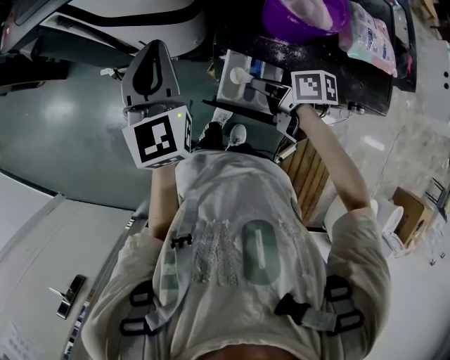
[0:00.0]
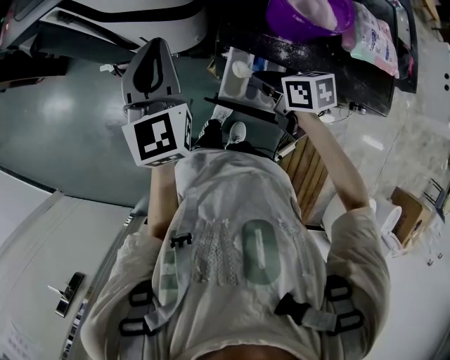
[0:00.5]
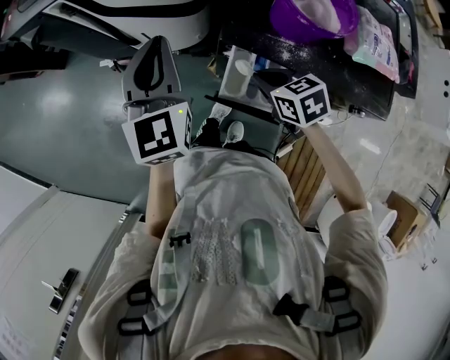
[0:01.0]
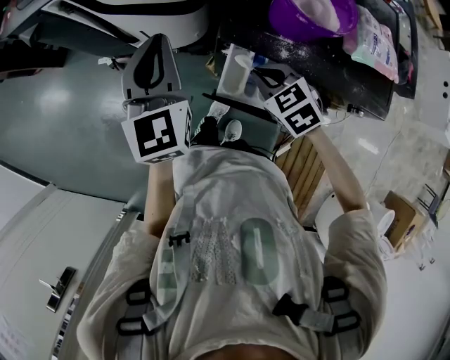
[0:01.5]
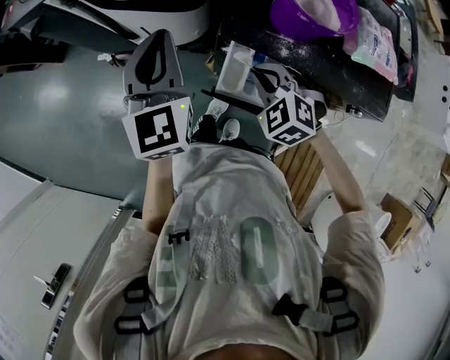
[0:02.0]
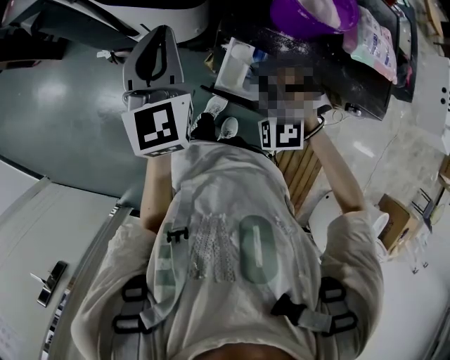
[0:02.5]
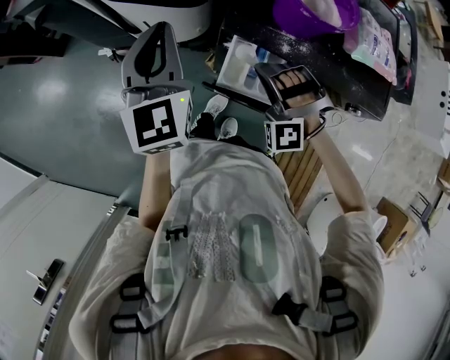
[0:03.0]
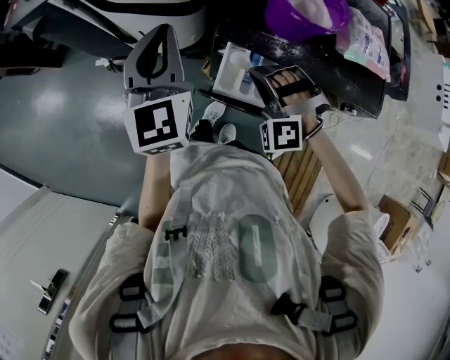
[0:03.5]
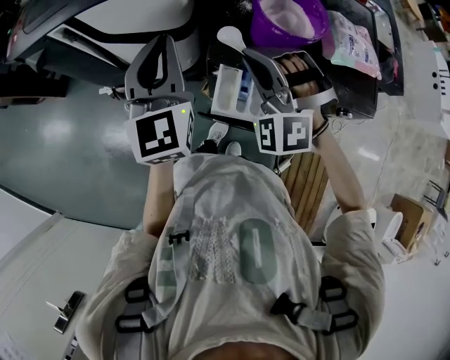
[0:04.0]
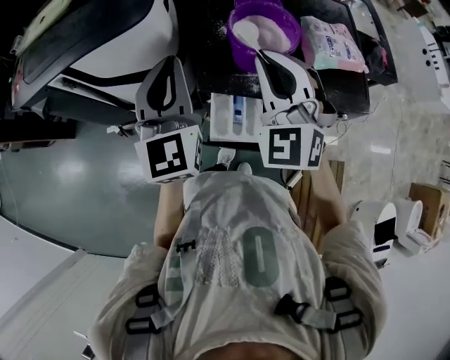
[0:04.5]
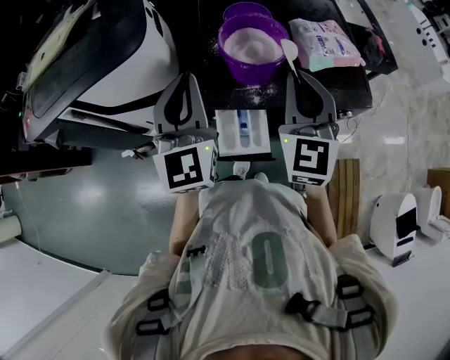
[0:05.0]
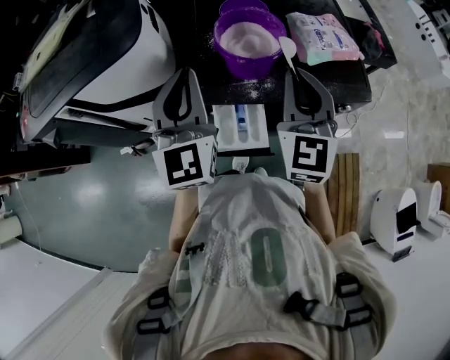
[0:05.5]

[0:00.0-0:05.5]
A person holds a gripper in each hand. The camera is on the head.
0:00.0 to 0:02.0: The right gripper rolls counterclockwise, seen from behind, by some 90 degrees.
0:02.0 to 0:03.5: The right gripper rolls counterclockwise, seen from behind, by about 40 degrees.
0:03.5 to 0:05.5: The right gripper heads upward, covering roughly 20 cm, and twists about 80 degrees clockwise, seen from behind. Meanwhile the left gripper moves approximately 15 cm, and swivels some 20 degrees.

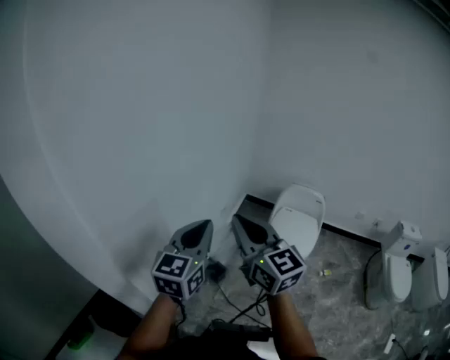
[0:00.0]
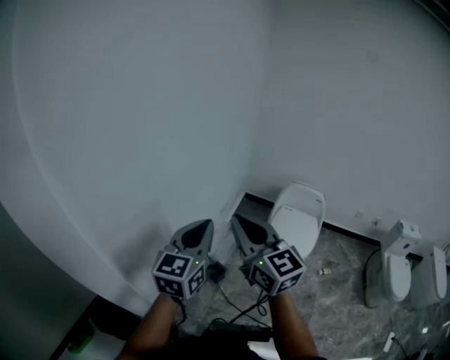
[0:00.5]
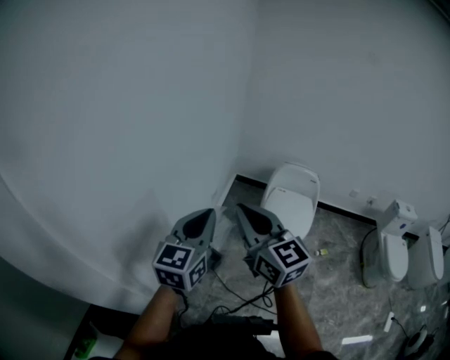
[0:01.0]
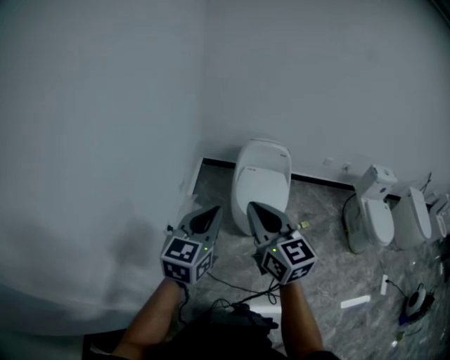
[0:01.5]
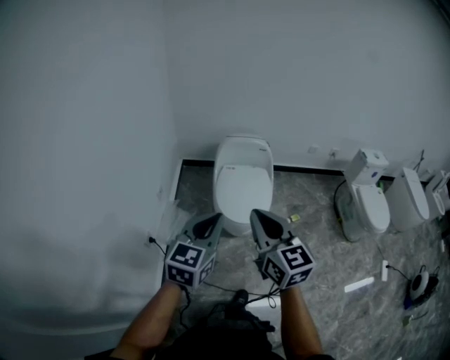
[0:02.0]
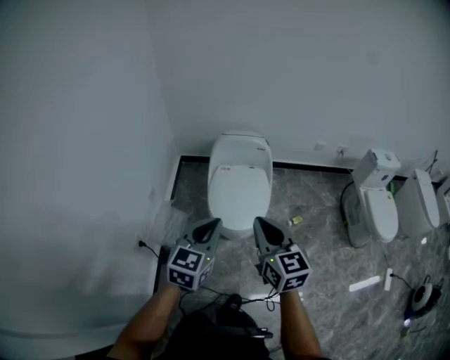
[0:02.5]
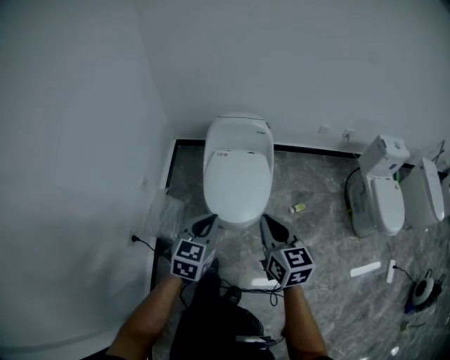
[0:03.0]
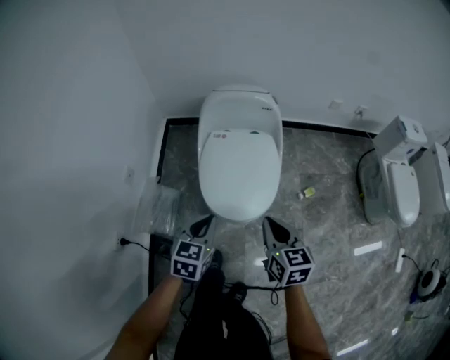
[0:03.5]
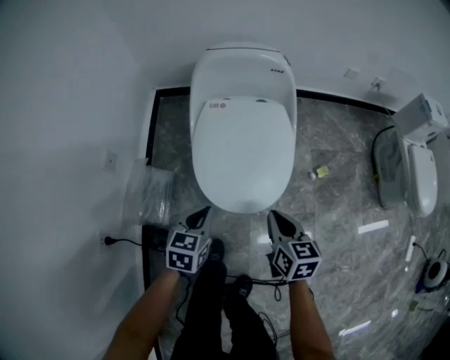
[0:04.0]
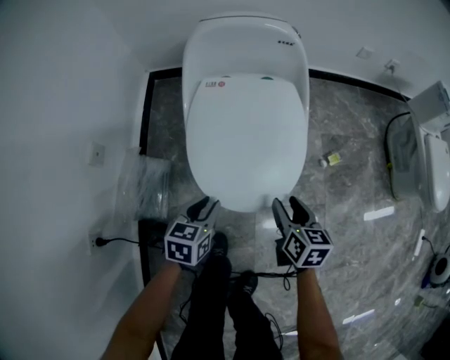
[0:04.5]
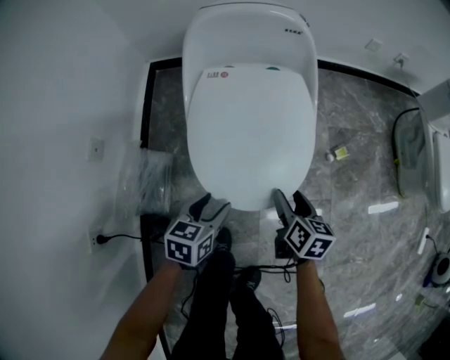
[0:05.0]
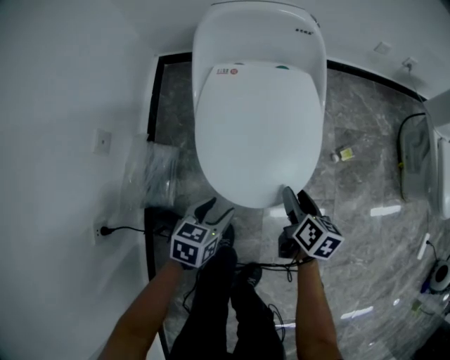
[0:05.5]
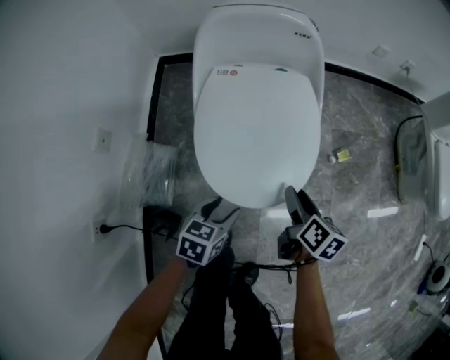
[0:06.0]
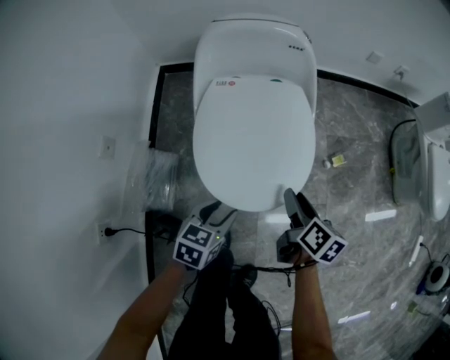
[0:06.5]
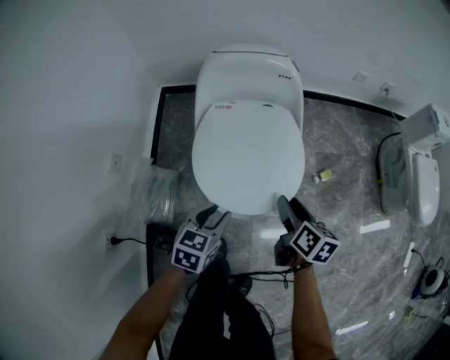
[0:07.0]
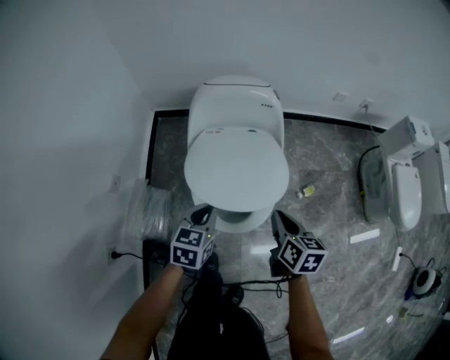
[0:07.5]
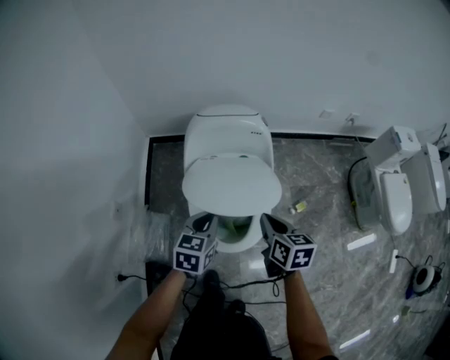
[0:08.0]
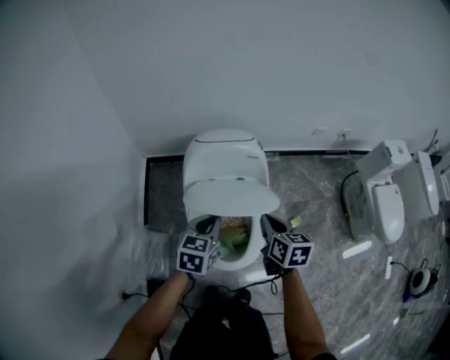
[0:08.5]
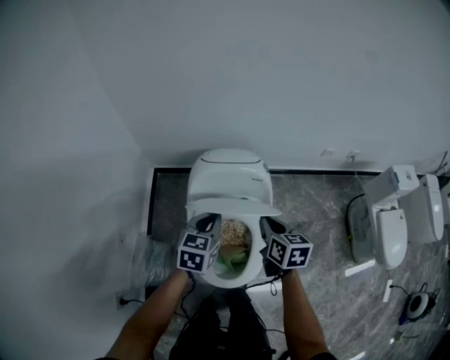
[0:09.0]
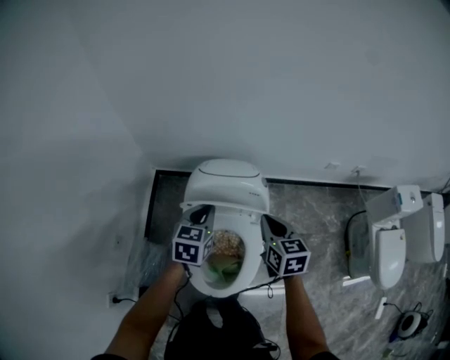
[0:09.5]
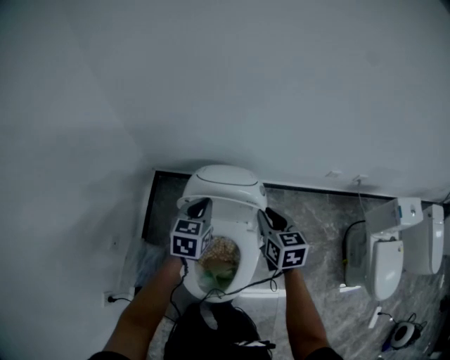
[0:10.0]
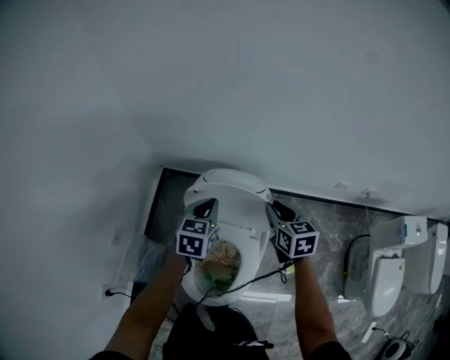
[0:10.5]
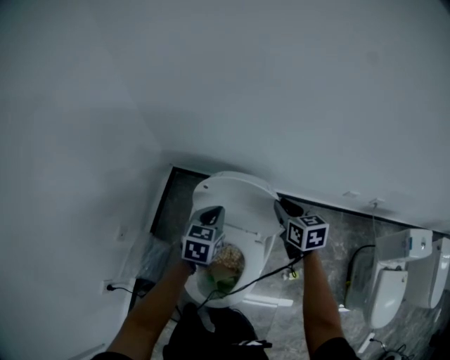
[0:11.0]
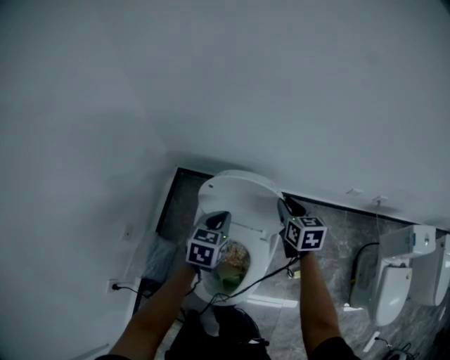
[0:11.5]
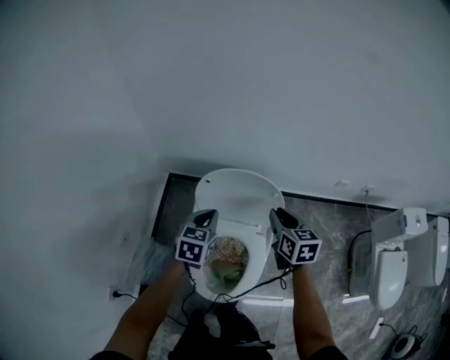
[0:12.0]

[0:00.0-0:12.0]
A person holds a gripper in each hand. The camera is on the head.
0:00.0 to 0:02.0: The right gripper moves about 25 cm, and changes its angle by approximately 40 degrees; the left gripper moves some 25 cm, and swivels about 30 degrees.
0:02.0 to 0:04.0: Both grippers travel together downward and forward, about 50 cm. The right gripper rotates about 40 degrees. Meanwhile the left gripper turns by some 30 degrees.
0:04.0 to 0:06.0: The left gripper moves downward, some 10 cm, and opens up. Meanwhile the right gripper heads downward and forward, covering some 10 cm, rotates about 30 degrees, and opens.
0:06.0 to 0:08.0: The right gripper is displaced upward by about 20 cm, swivels some 20 degrees, and closes its fingers; the left gripper shifts about 25 cm upward and forward, and closes.
0:08.0 to 0:10.0: The grippers both shift forward by about 25 cm.
0:10.0 to 0:12.0: The right gripper travels forward and back again, about 10 cm each way.

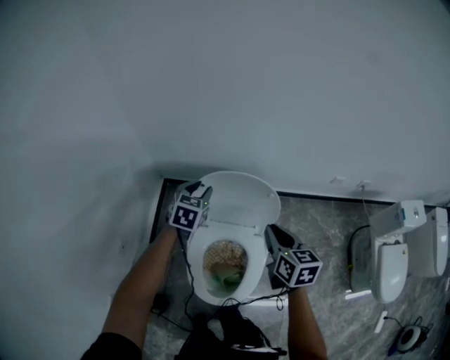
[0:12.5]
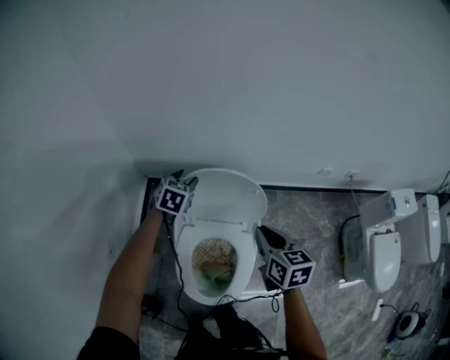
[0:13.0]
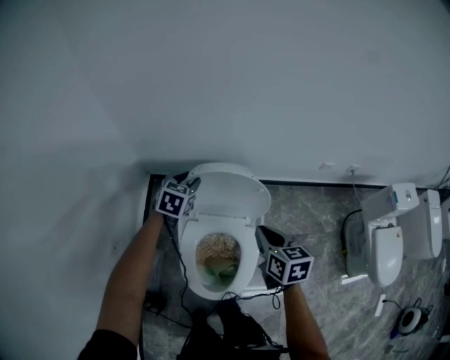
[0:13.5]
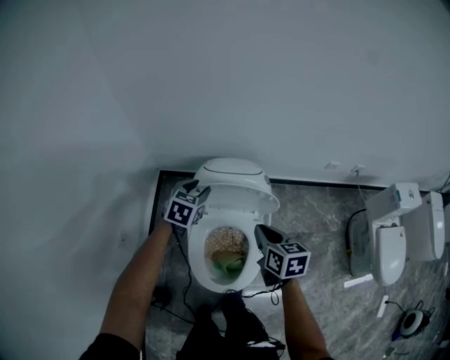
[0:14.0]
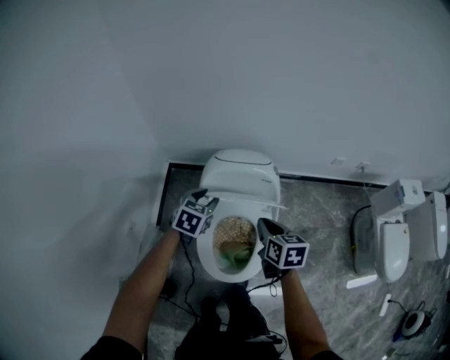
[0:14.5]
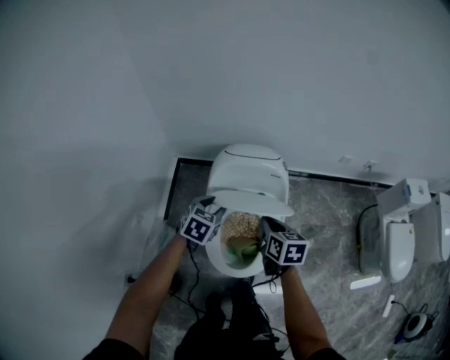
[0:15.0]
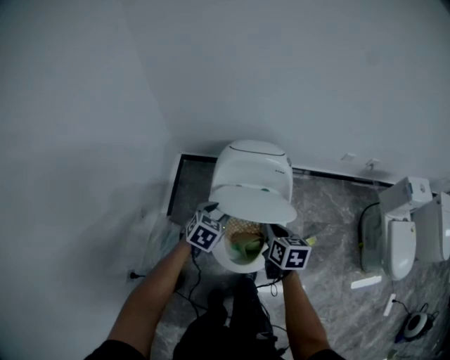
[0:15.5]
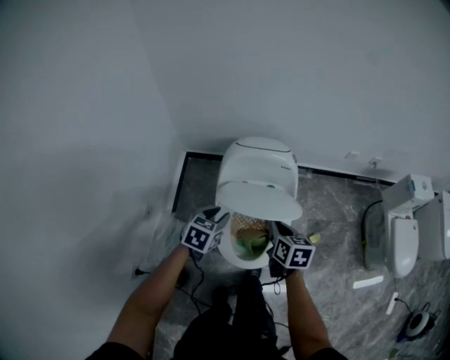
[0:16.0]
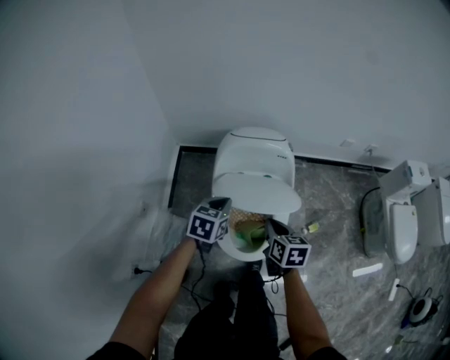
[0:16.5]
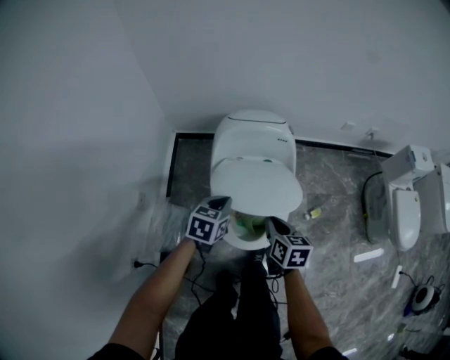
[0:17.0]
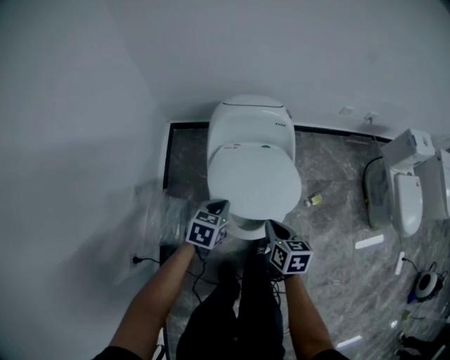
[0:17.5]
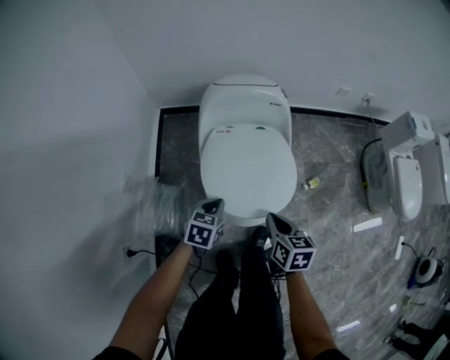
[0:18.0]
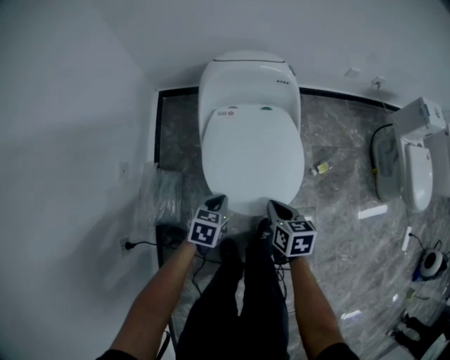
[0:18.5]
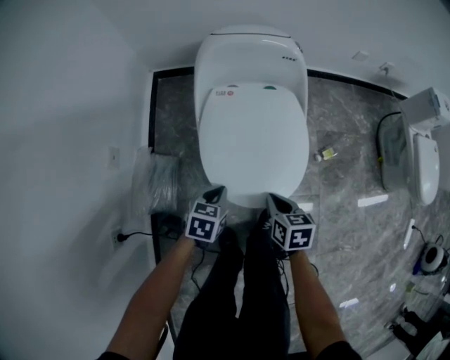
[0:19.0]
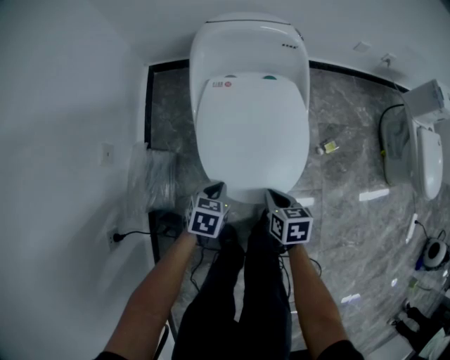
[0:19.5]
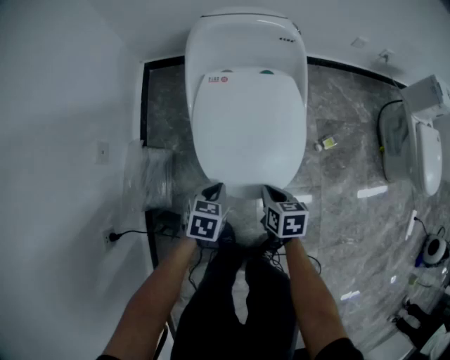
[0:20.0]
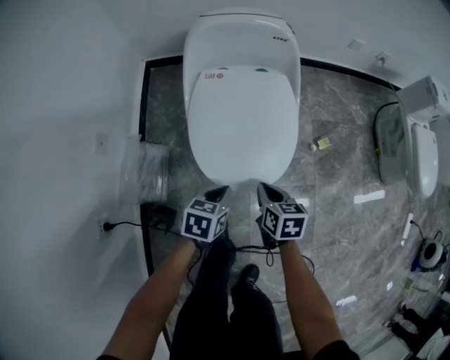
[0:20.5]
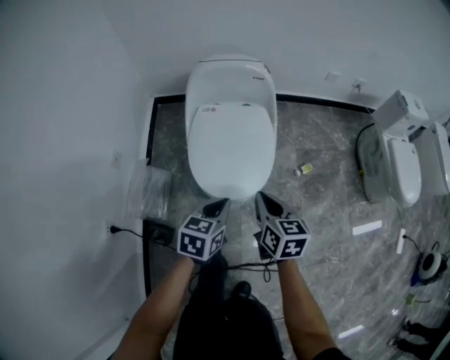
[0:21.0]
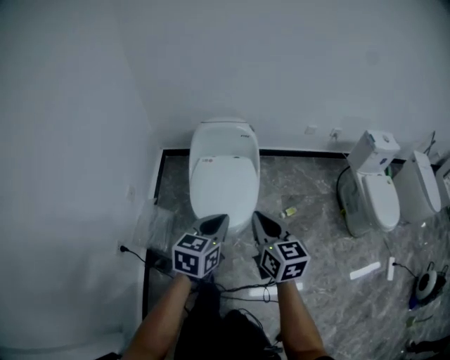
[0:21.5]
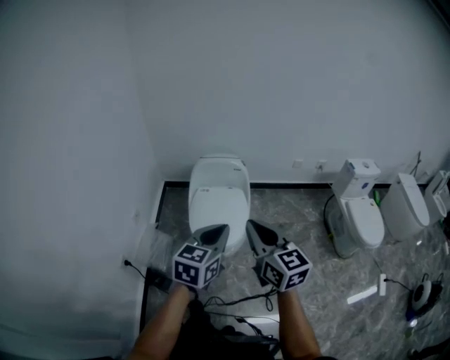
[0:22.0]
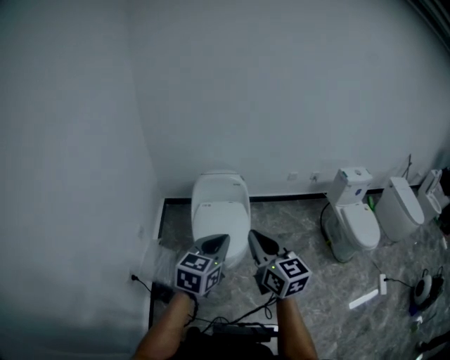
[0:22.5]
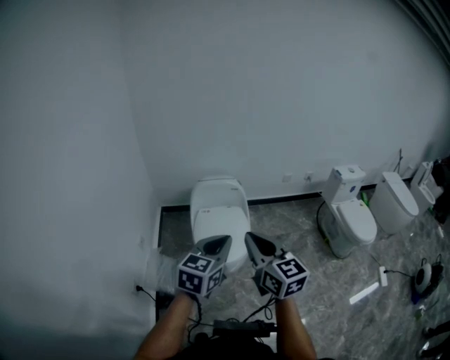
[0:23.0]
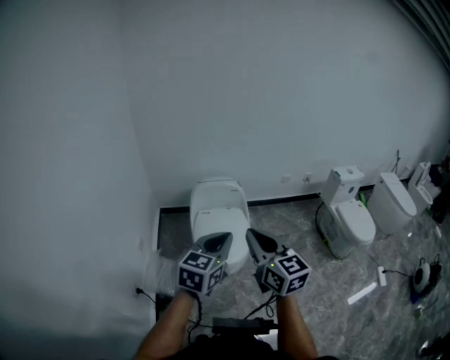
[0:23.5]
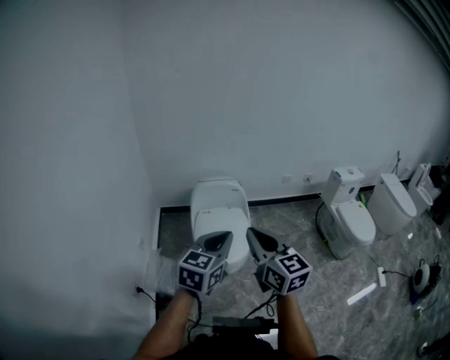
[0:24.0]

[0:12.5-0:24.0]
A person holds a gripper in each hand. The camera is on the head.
0:12.5 to 0:14.5: The left gripper travels backward by roughly 15 cm. The right gripper goes about 10 cm backward, downward and to the left.
0:14.5 to 0:16.5: The right gripper goes approximately 10 cm backward and downward, while the left gripper heads backward, covering some 10 cm, and closes its fingers.
0:16.5 to 0:18.5: Both grippers move downward and backward, some 20 cm.
0:18.5 to 0:20.0: The left gripper goes roughly 5 cm downward; the right gripper moves downward, about 10 cm.
0:20.0 to 0:22.0: Both grippers move upward, roughly 50 cm. The left gripper angles its fingers upward, by approximately 40 degrees. The right gripper tips its fingers upward by some 50 degrees.
0:22.0 to 0:24.0: The left gripper travels upward and to the left by some 10 cm, while the right gripper goes some 10 cm to the left and upward.
